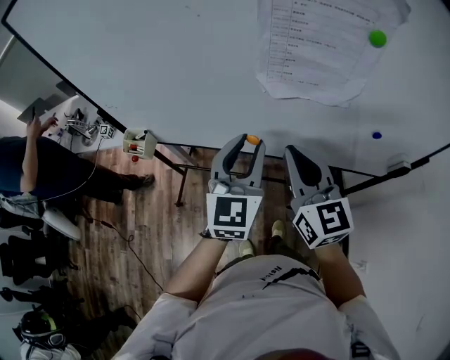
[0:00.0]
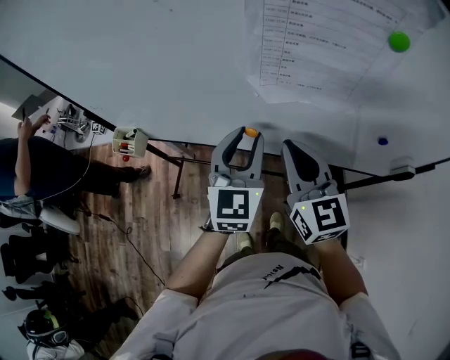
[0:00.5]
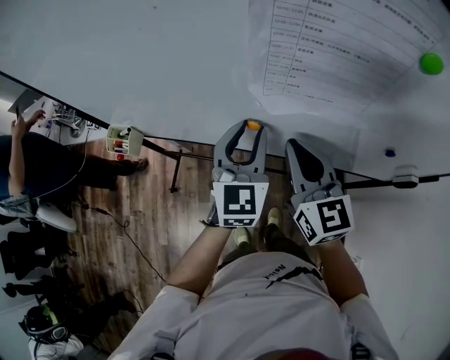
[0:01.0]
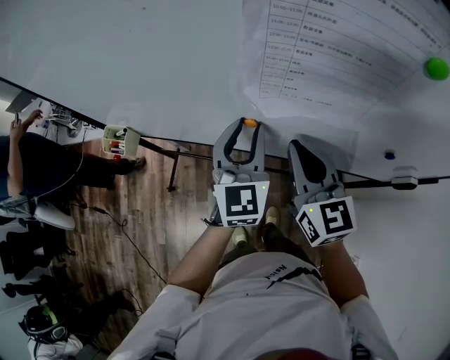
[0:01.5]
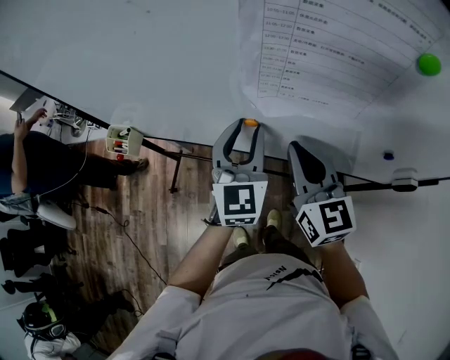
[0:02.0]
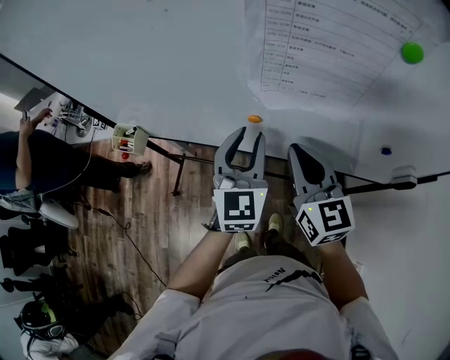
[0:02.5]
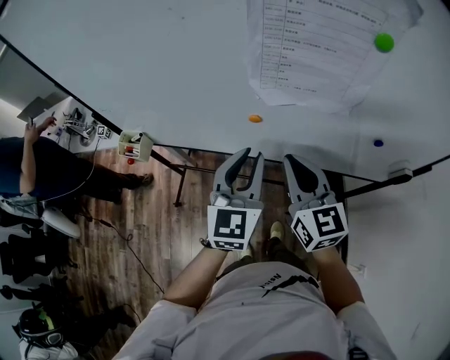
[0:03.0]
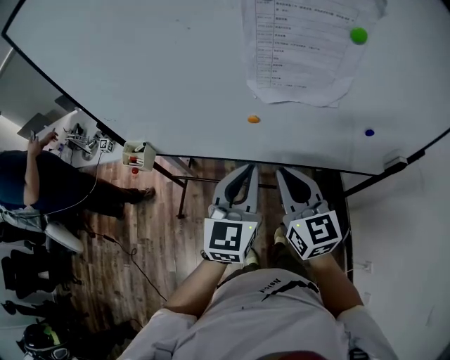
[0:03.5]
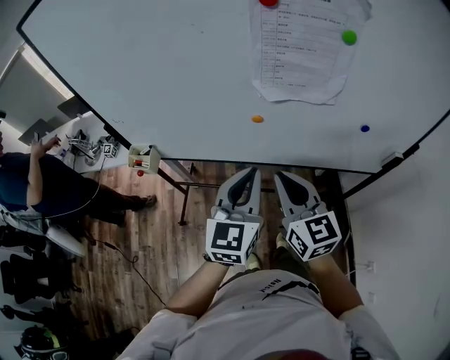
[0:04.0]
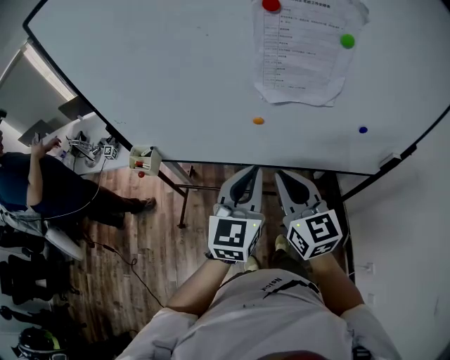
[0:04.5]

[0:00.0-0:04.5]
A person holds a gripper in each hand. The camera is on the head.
0:00.0 to 0:02.0: Both grippers travel together forward and downward, approximately 10 cm.
0:02.0 to 0:04.5: The left gripper moves backward, roughly 15 cm, and closes its fingers. The right gripper travels backward and to the left by roughly 15 cm.

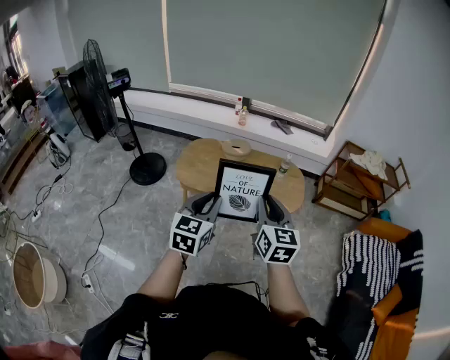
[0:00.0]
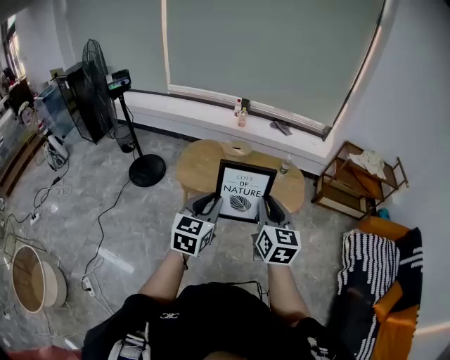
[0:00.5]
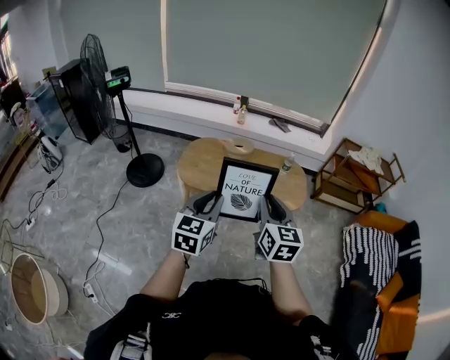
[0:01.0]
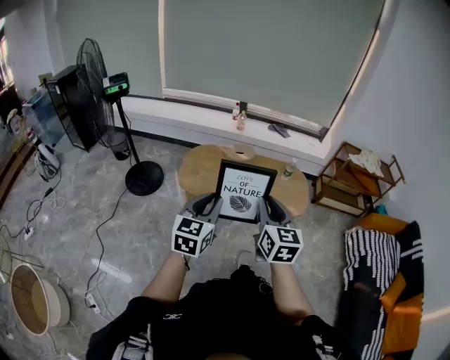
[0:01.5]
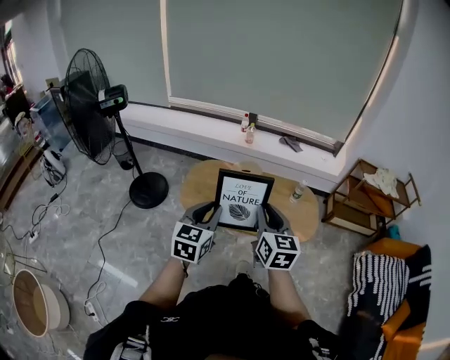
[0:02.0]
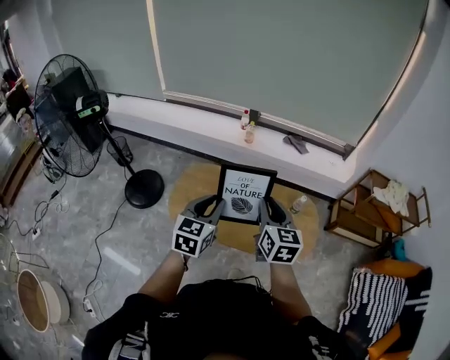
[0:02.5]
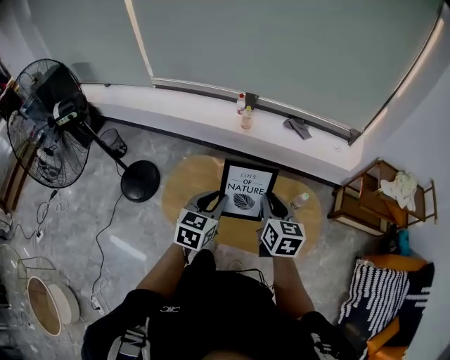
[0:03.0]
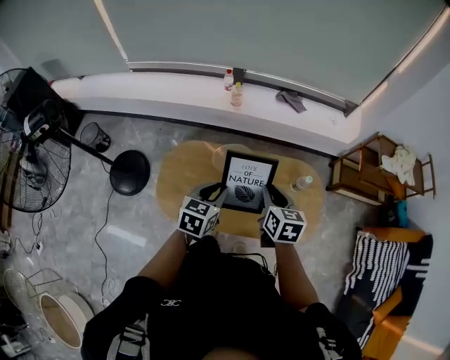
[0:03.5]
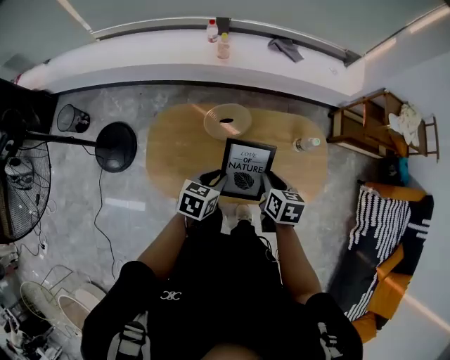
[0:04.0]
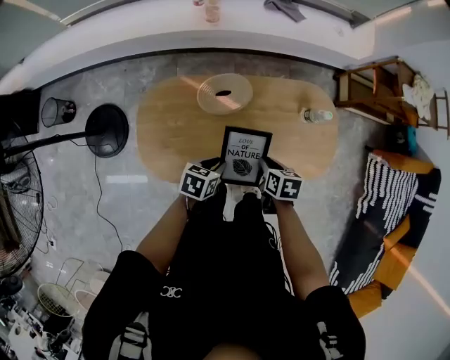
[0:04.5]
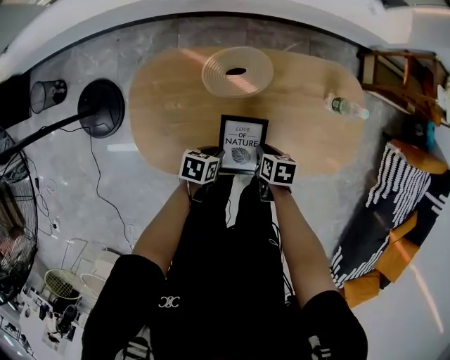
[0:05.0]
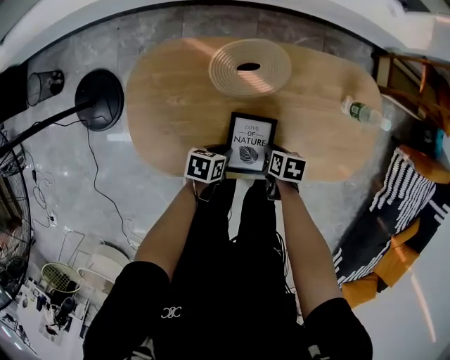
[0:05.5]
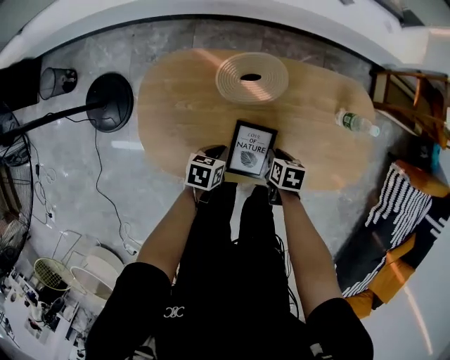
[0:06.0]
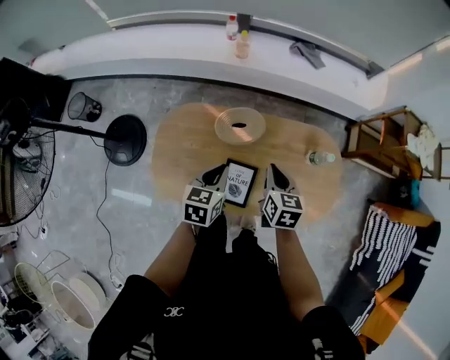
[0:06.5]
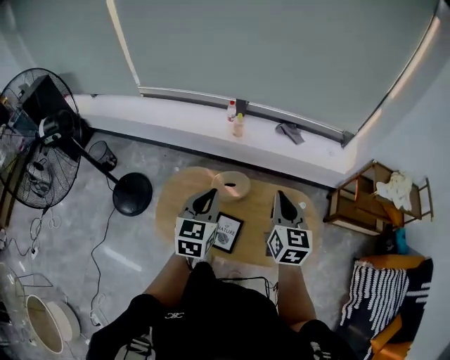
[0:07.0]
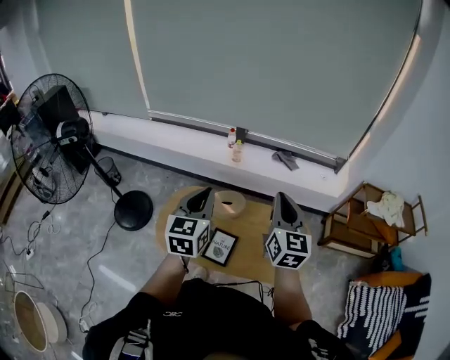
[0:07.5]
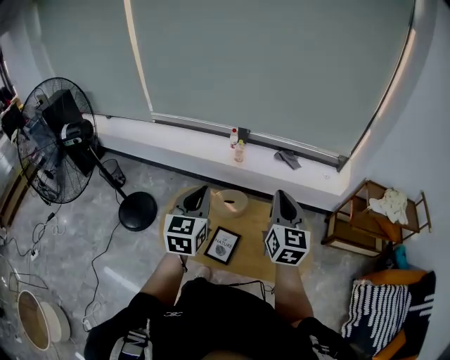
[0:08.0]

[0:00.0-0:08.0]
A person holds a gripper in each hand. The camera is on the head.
0:00.0 to 0:02.0: The two grippers go about 20 cm forward and to the left.
0:02.0 to 0:04.0: The two grippers travel together, forward, roughly 40 cm. Both grippers travel together downward, about 30 cm. The left gripper rotates some 40 degrees; the right gripper tilts its fingers roughly 40 degrees downward.
0:04.0 to 0:06.0: The grippers both shift downward by about 35 cm. The right gripper swivels roughly 20 degrees; the left gripper rotates roughly 20 degrees.
0:06.0 to 0:08.0: Both grippers travel together upward, roughly 70 cm. The right gripper tips its fingers upward by some 70 degrees, and closes up. Meanwhile the left gripper points its fingers about 50 degrees further upward.

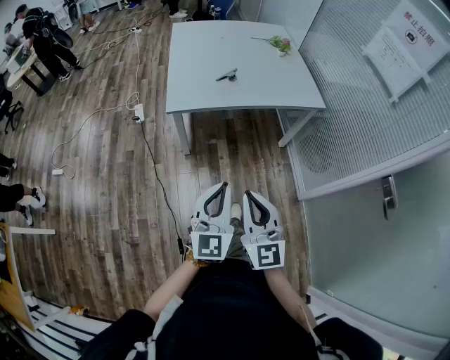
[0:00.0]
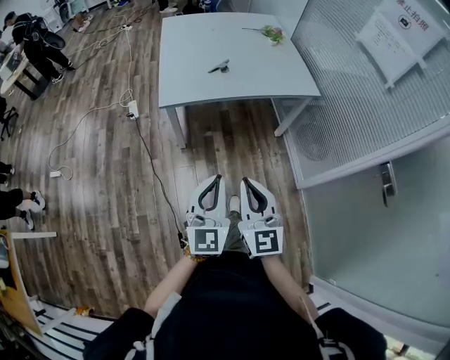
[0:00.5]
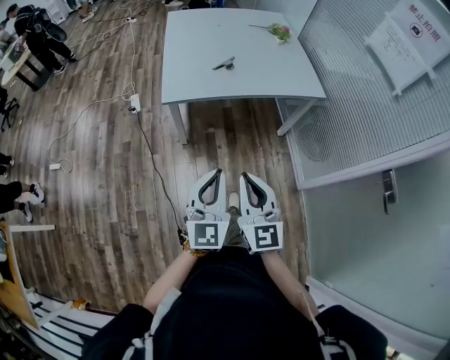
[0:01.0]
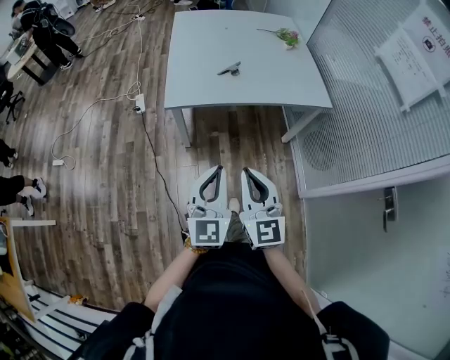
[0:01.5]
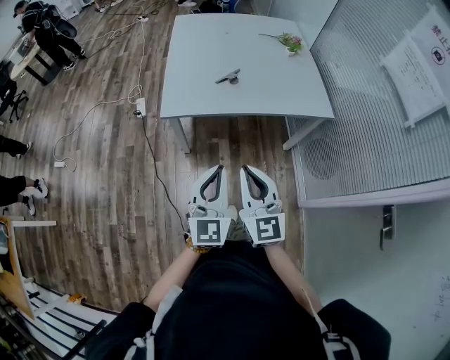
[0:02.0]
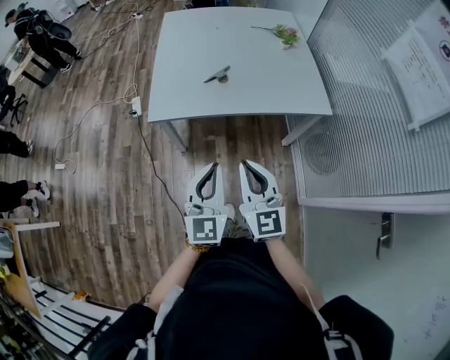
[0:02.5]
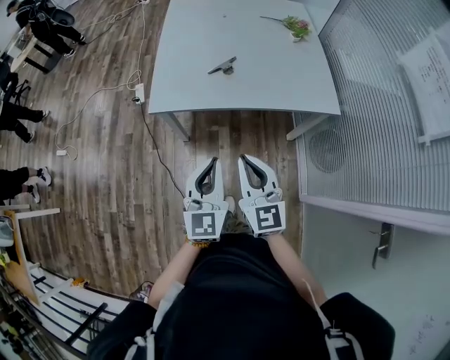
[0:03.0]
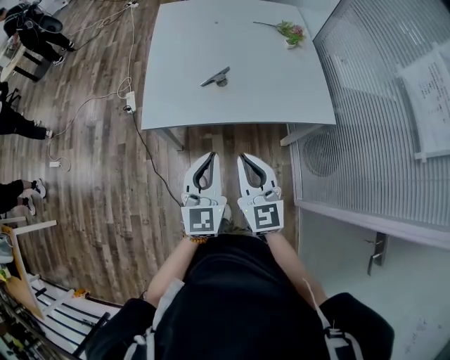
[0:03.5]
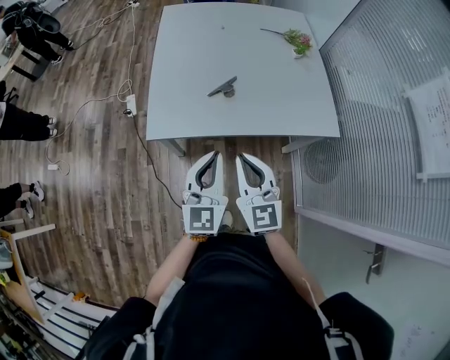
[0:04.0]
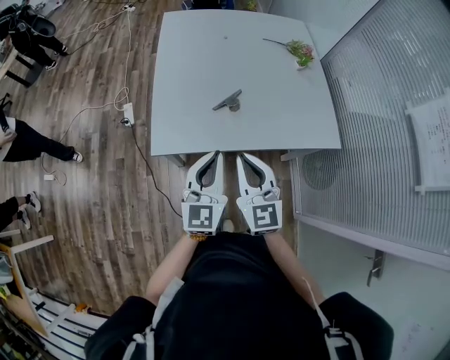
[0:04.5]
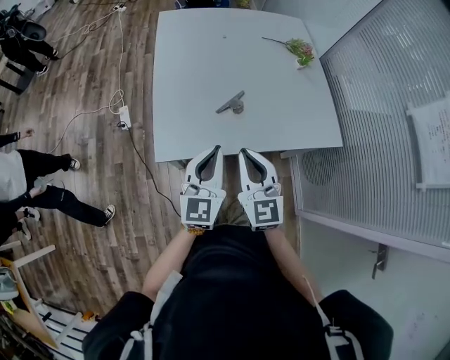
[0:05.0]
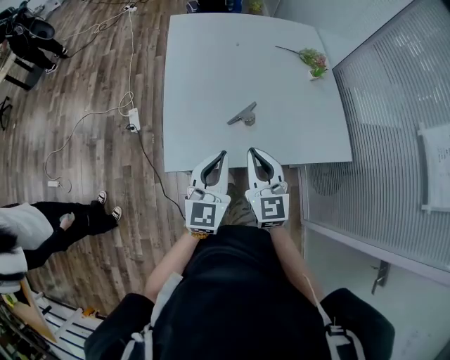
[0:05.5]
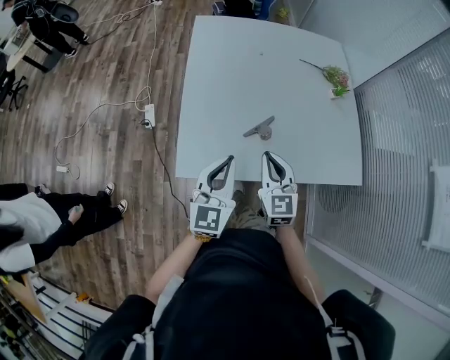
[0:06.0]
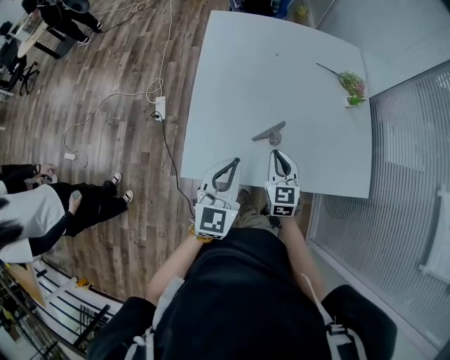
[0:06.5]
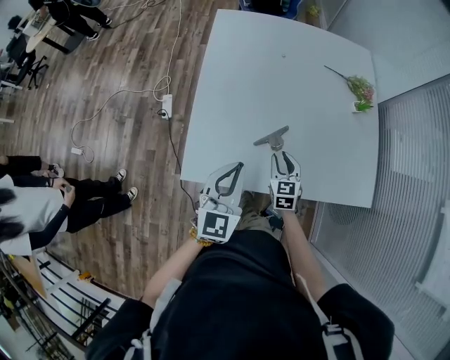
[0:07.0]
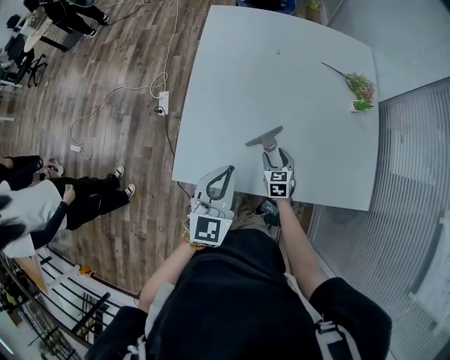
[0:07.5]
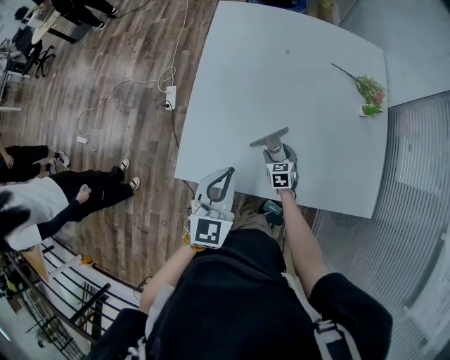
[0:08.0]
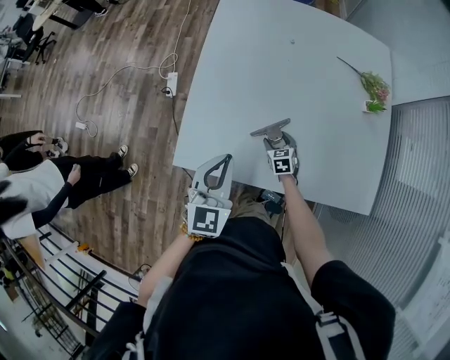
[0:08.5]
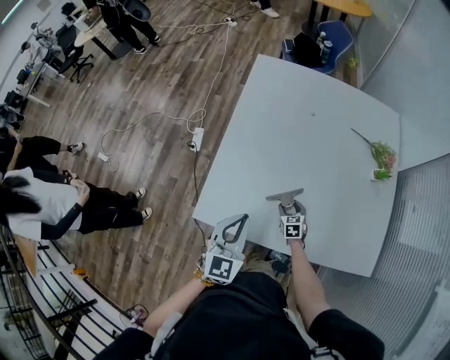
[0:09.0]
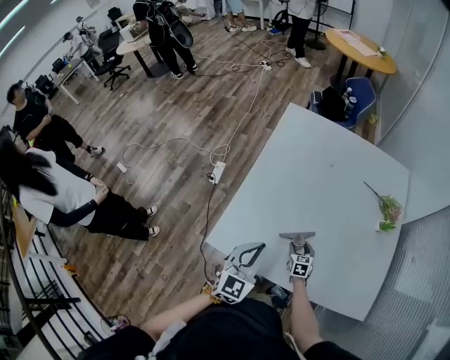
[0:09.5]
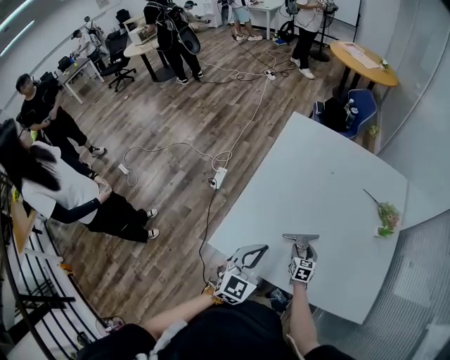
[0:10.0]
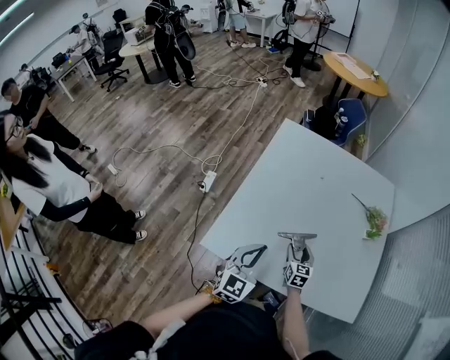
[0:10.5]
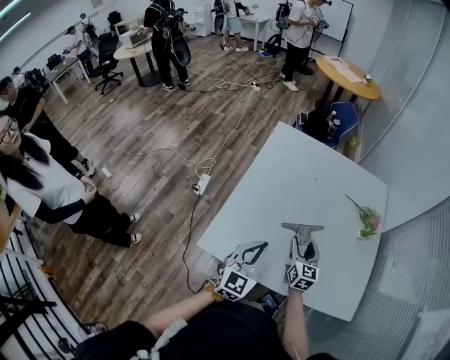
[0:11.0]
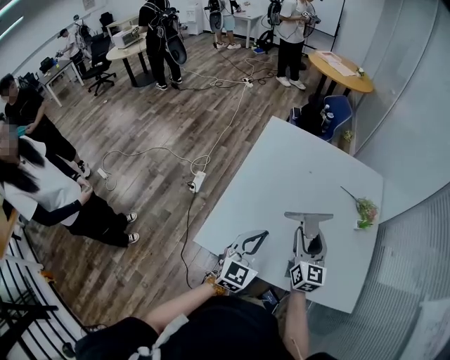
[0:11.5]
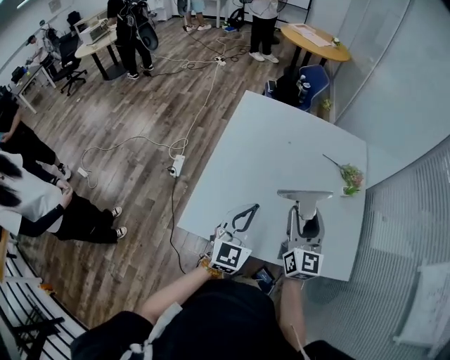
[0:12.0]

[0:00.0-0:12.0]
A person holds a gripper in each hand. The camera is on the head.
0:00.0 to 0:02.0: Both grippers move forward, roughly 15 cm.
0:02.0 to 0:04.0: Both grippers travel together forward, roughly 25 cm.
0:04.0 to 0:06.0: The right gripper shifts about 25 cm forward. The left gripper shifts approximately 20 cm forward and to the left.
0:06.0 to 0:08.0: The left gripper heads forward, covering about 5 cm, while the right gripper shifts some 30 cm downward and forward, tips its fingers downward by some 30 degrees, and opens up.
0:08.0 to 0:10.0: The grippers move only a little.
0:10.0 to 0:12.0: The right gripper is displaced upward by approximately 35 cm, and tips its fingers upward by about 40 degrees; the left gripper shifts some 5 cm upward.

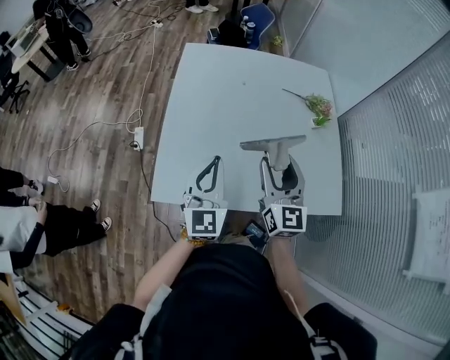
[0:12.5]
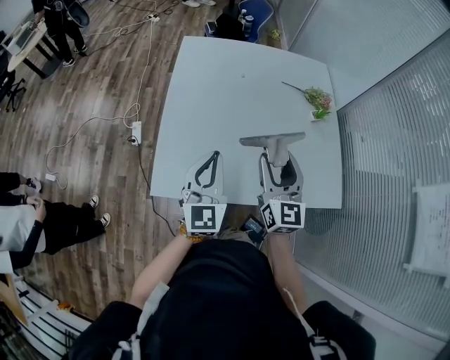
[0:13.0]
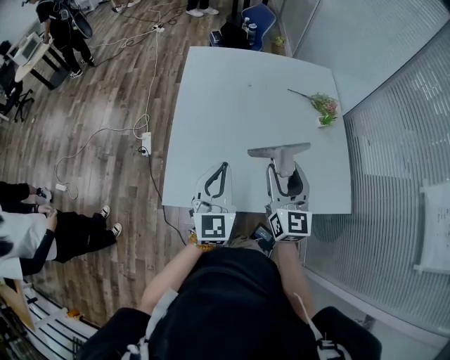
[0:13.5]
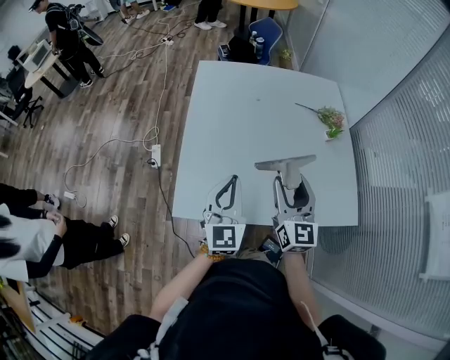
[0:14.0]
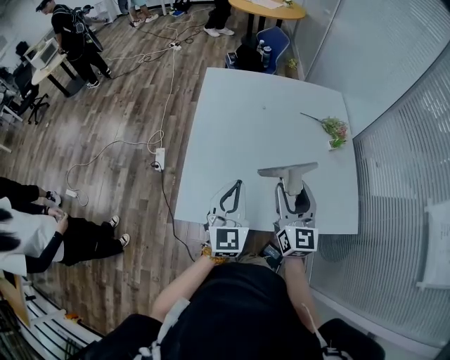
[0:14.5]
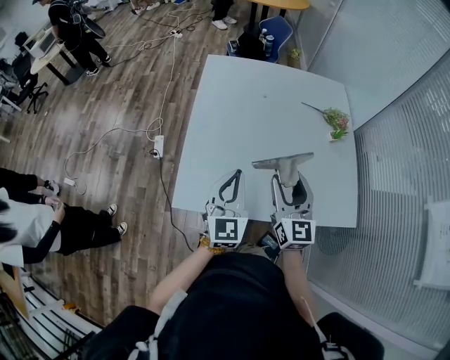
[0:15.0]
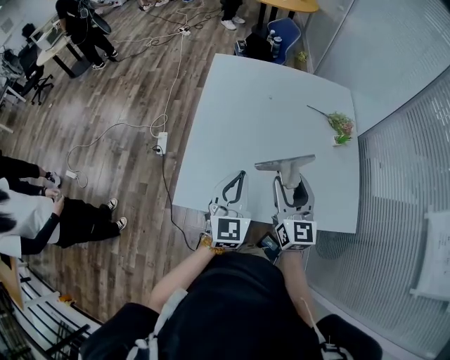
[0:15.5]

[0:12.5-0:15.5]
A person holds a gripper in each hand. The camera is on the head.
0:12.5 to 0:15.5: The grippers make only small movements.
